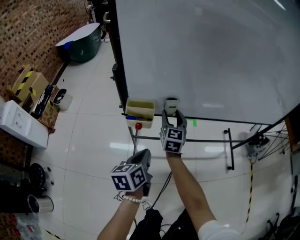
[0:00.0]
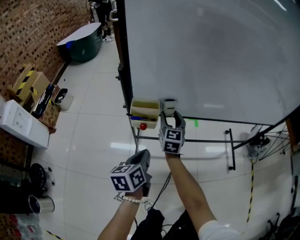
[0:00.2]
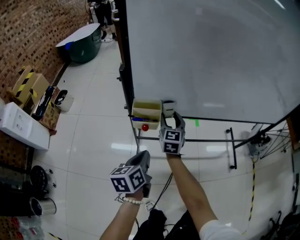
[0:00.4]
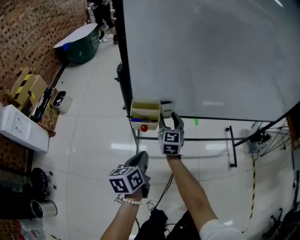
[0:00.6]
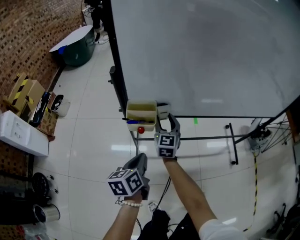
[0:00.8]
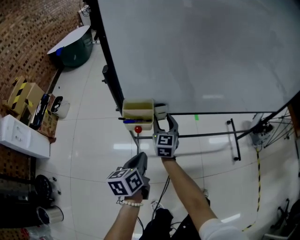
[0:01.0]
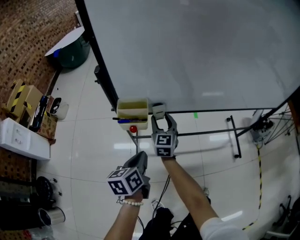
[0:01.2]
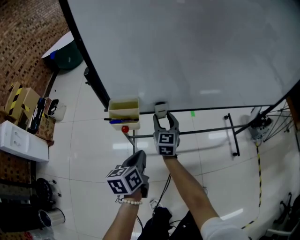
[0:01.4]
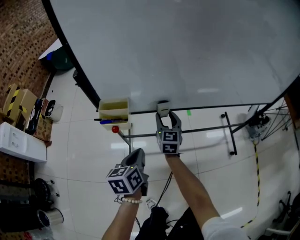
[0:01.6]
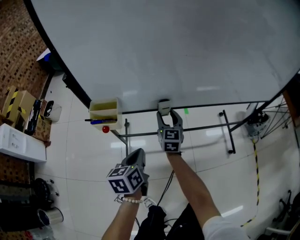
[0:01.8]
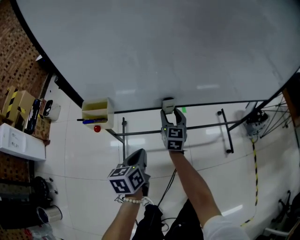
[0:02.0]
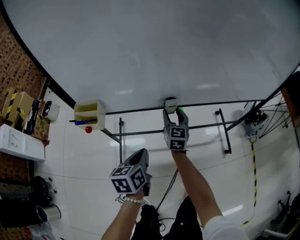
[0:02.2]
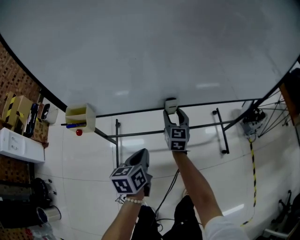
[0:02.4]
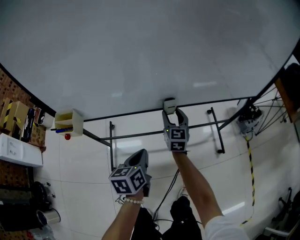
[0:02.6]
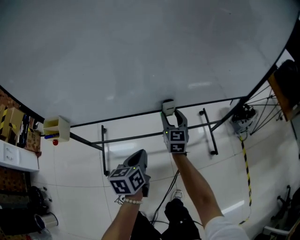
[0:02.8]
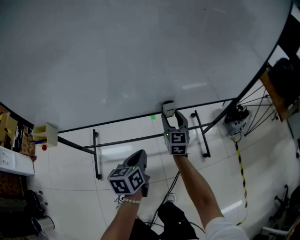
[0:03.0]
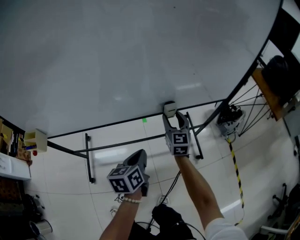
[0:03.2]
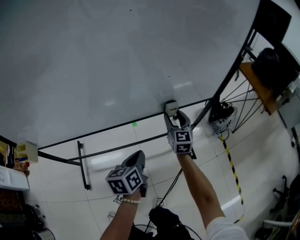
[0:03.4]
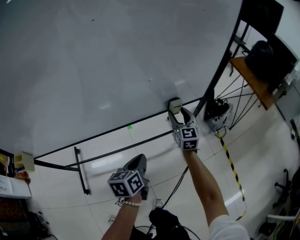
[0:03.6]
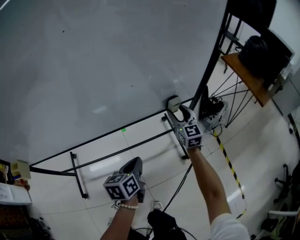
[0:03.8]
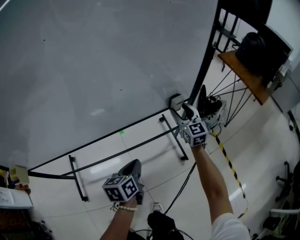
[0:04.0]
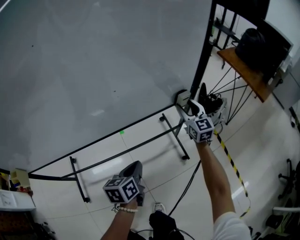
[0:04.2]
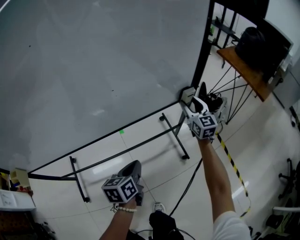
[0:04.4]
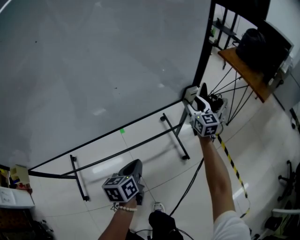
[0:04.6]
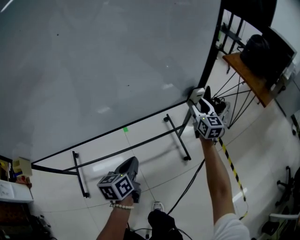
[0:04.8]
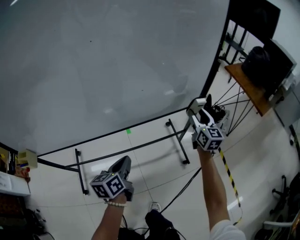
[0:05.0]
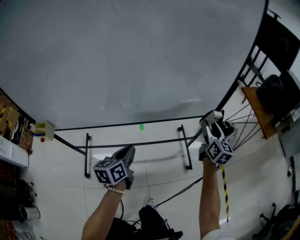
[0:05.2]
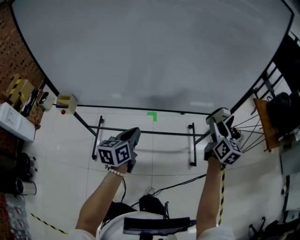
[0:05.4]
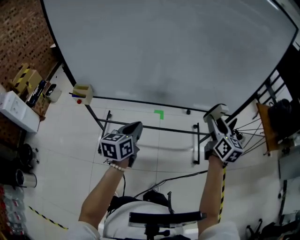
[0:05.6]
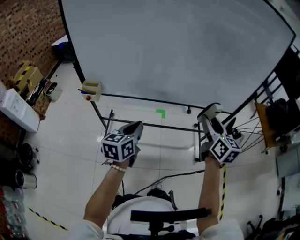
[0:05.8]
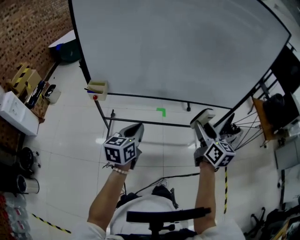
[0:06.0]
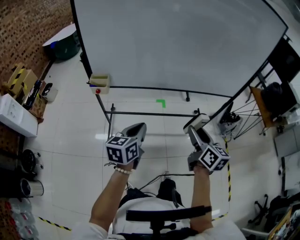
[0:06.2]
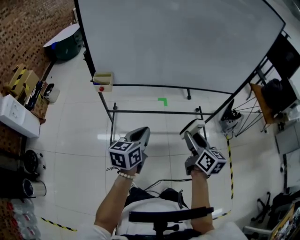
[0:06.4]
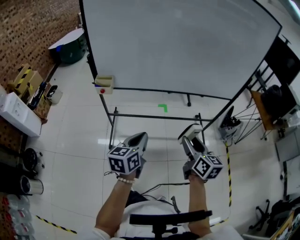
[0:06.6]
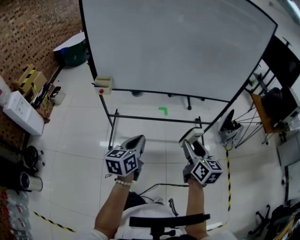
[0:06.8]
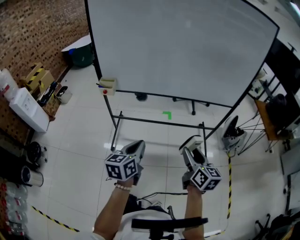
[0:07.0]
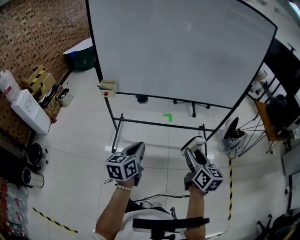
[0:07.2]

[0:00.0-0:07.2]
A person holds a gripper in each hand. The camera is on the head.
0.0 to 1.4 s: The right gripper heads downward, covering about 5 cm.
1.4 to 2.8 s: The two grippers go some 40 cm to the right.
2.8 to 4.4 s: The right gripper is displaced to the right by some 50 cm; the left gripper moves to the right and forward, approximately 35 cm.
4.4 to 5.8 s: The two grippers travel together, to the left and backward, some 50 cm. The grippers both shift upward by approximately 30 cm. The left gripper turns by about 30 degrees. The right gripper changes its angle by about 20 degrees.
5.8 to 7.2 s: Both grippers move backward, approximately 20 cm.

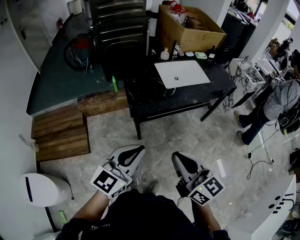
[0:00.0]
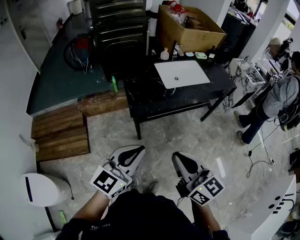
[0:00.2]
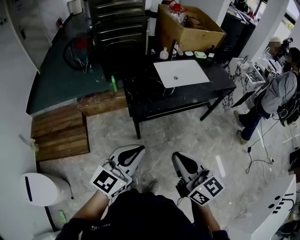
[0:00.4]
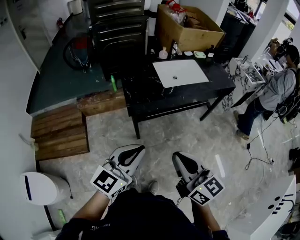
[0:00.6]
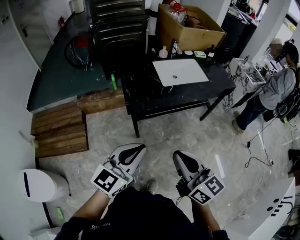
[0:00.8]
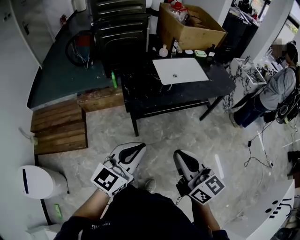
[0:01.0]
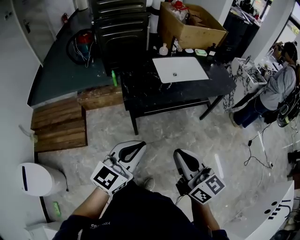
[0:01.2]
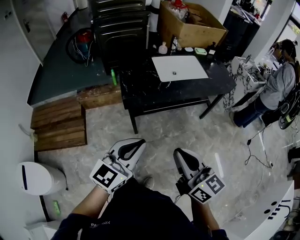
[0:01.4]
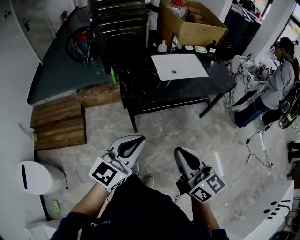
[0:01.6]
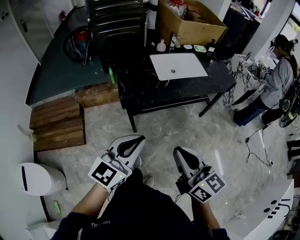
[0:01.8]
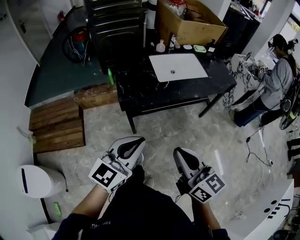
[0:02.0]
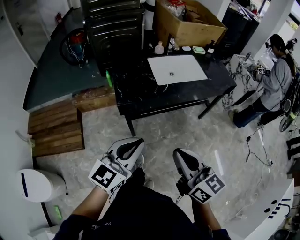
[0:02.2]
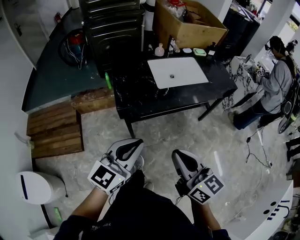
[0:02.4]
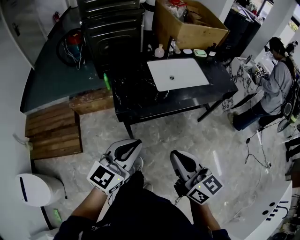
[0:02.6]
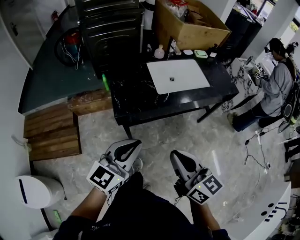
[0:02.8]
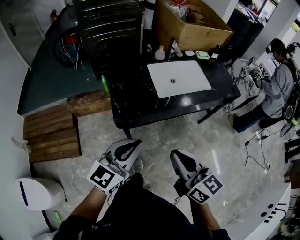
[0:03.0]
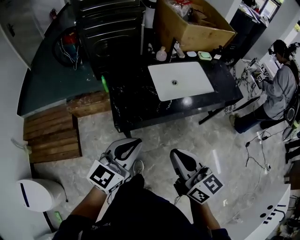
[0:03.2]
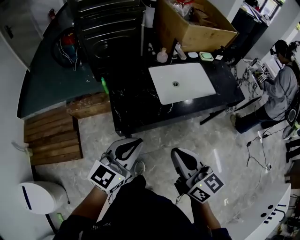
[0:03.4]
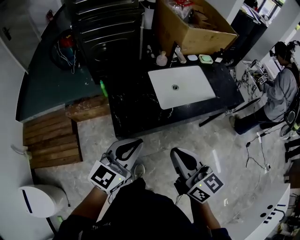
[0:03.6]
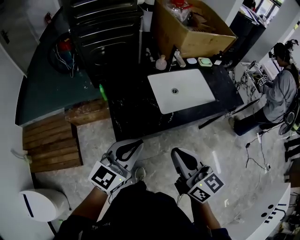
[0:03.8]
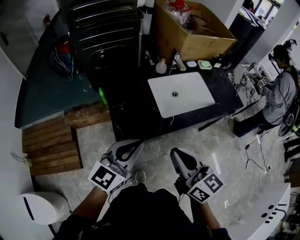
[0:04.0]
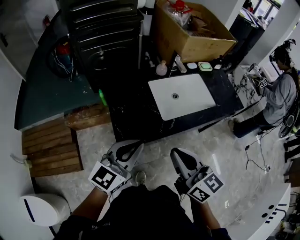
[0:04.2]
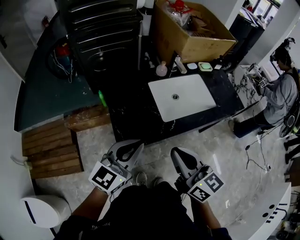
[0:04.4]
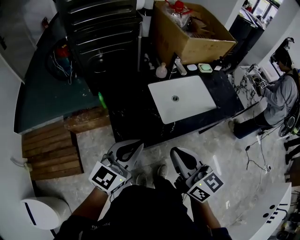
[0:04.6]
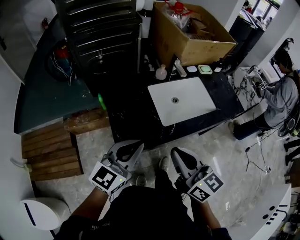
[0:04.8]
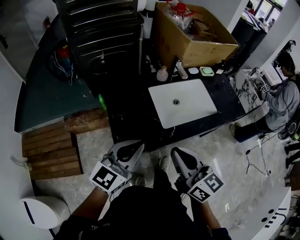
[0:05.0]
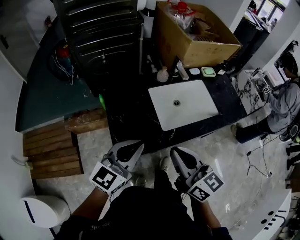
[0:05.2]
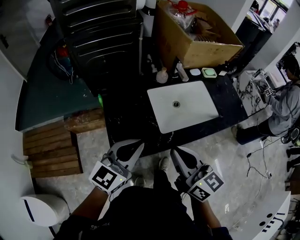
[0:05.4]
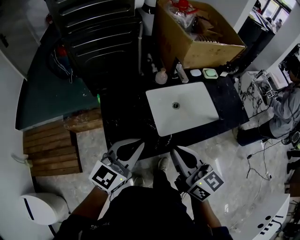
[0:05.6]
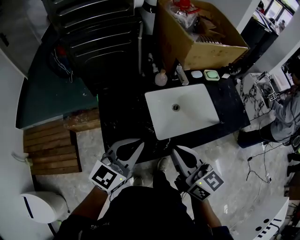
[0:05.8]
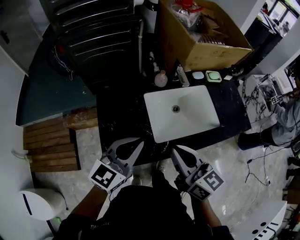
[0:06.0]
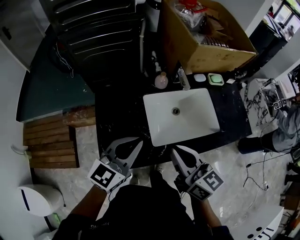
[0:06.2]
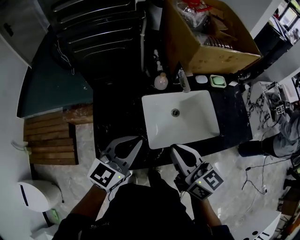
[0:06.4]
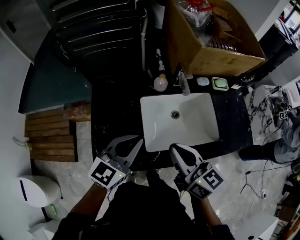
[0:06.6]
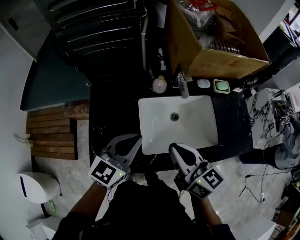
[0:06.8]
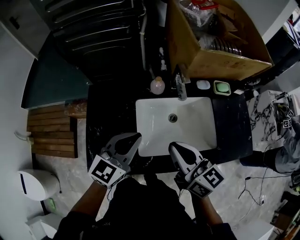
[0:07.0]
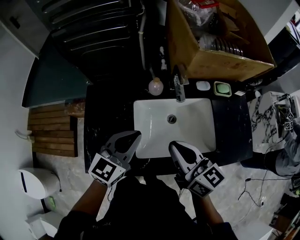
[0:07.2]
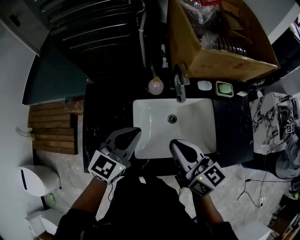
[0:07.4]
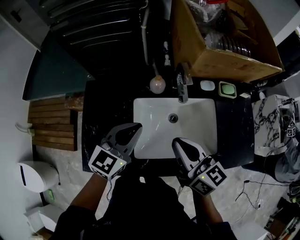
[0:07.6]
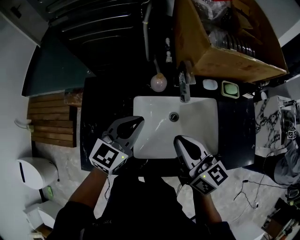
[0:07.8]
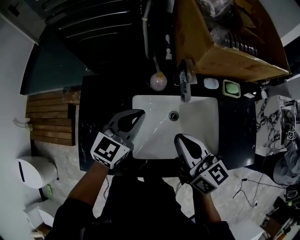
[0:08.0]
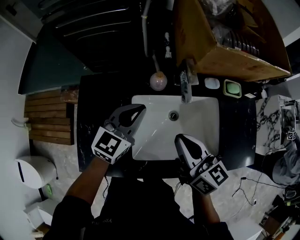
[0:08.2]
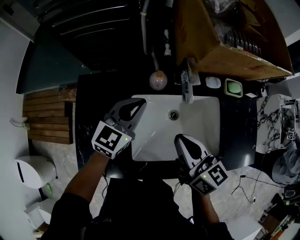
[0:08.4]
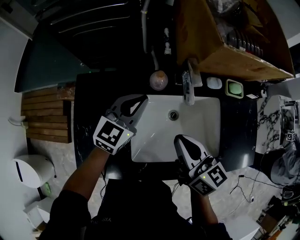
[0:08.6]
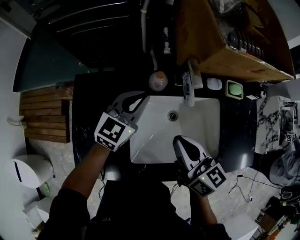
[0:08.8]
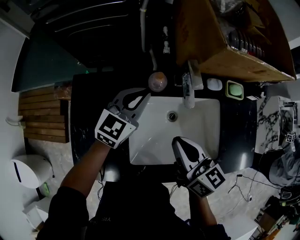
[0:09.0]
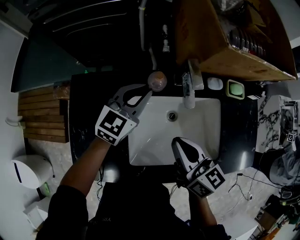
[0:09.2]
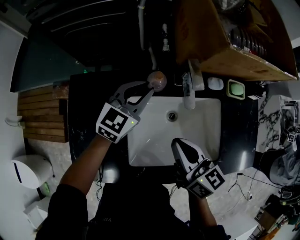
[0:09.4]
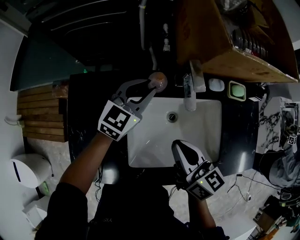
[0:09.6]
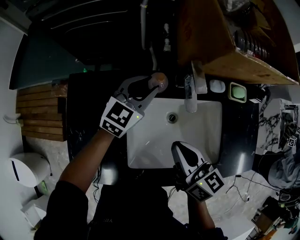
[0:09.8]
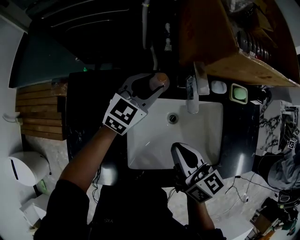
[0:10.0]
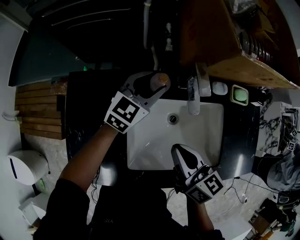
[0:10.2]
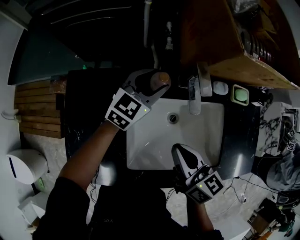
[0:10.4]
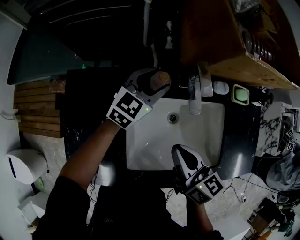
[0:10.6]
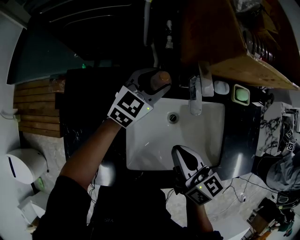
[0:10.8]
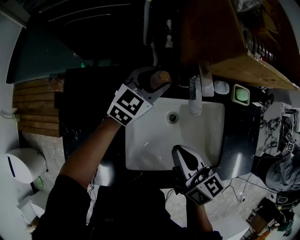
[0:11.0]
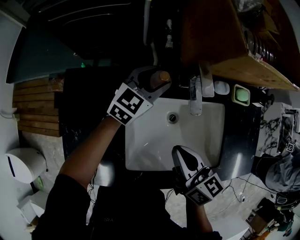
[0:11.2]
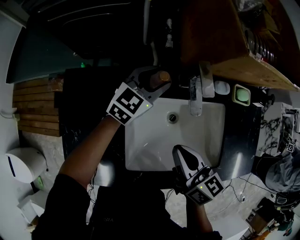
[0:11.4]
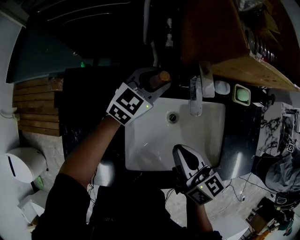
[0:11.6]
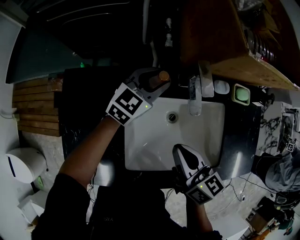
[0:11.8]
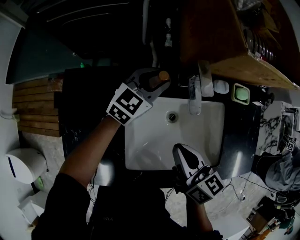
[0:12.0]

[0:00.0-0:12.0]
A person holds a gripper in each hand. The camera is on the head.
0.0 to 1.6 s: Both grippers travel together to the right, approximately 5 cm.
1.6 to 3.0 s: The two grippers go roughly 15 cm forward.
3.0 to 4.4 s: Both grippers move forward, approximately 15 cm.
4.4 to 6.0 s: The left gripper goes approximately 15 cm forward and to the right. The right gripper moves forward, roughly 15 cm.
6.0 to 7.6 s: The grippers both shift forward and to the right by some 20 cm.
7.6 to 9.0 s: The right gripper heads downward, covering some 5 cm, while the left gripper moves forward and downward, some 15 cm.
9.0 to 10.4 s: The left gripper moves forward, about 5 cm, and opens.
10.4 to 12.0 s: There are only small adjustments of the grippers.

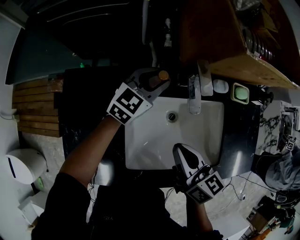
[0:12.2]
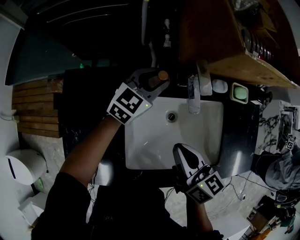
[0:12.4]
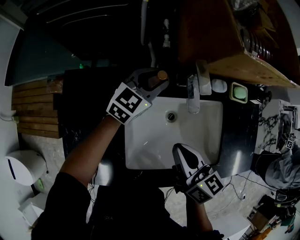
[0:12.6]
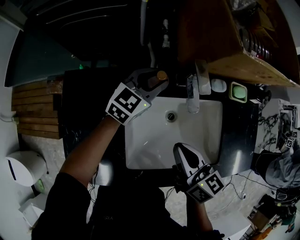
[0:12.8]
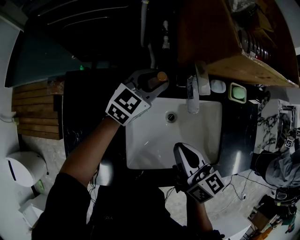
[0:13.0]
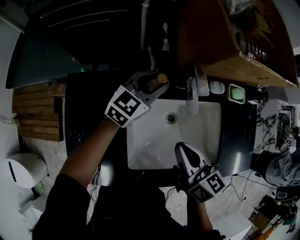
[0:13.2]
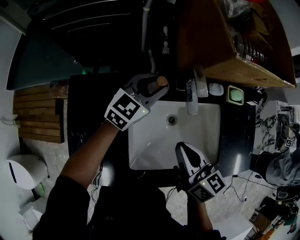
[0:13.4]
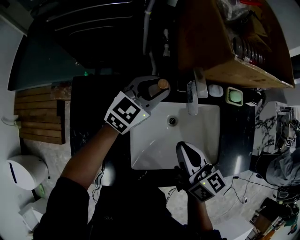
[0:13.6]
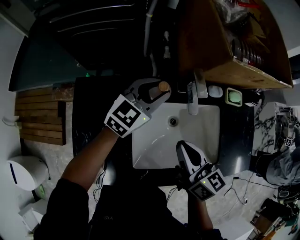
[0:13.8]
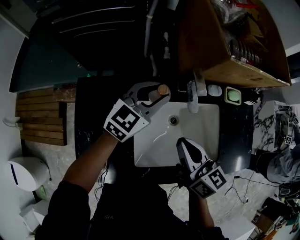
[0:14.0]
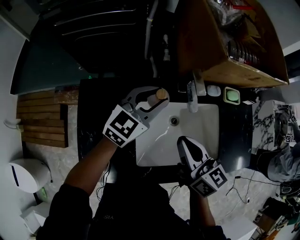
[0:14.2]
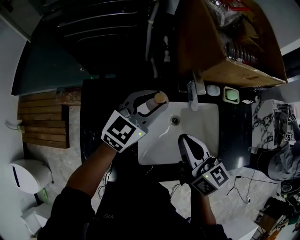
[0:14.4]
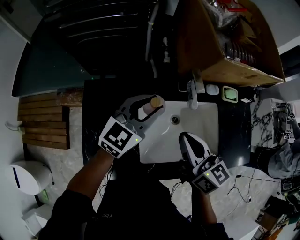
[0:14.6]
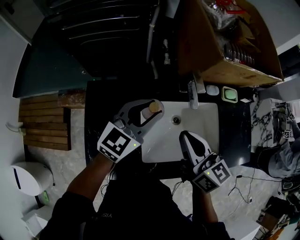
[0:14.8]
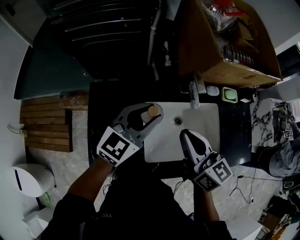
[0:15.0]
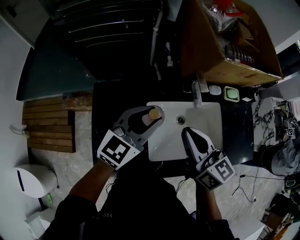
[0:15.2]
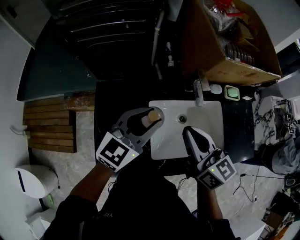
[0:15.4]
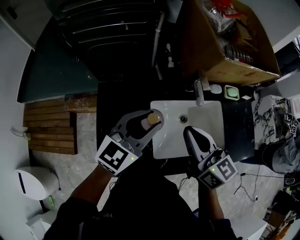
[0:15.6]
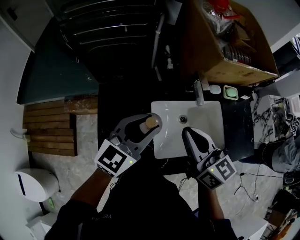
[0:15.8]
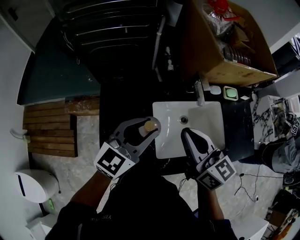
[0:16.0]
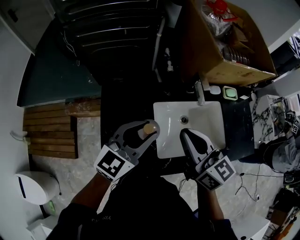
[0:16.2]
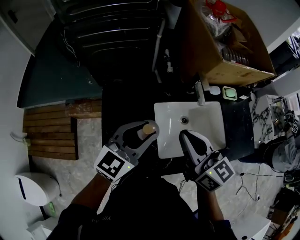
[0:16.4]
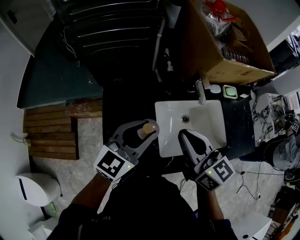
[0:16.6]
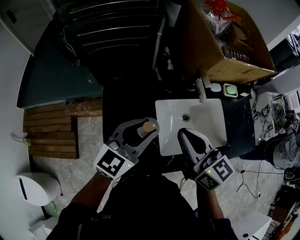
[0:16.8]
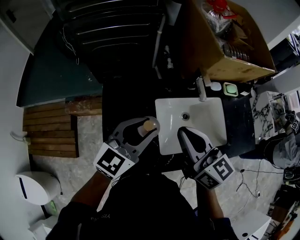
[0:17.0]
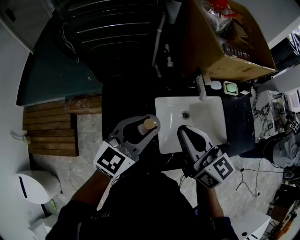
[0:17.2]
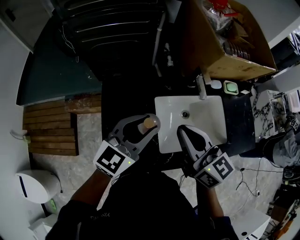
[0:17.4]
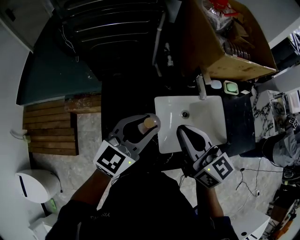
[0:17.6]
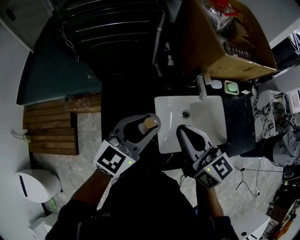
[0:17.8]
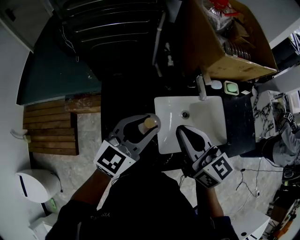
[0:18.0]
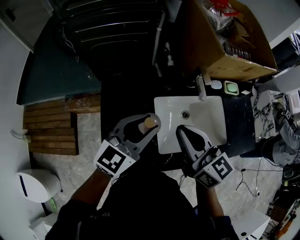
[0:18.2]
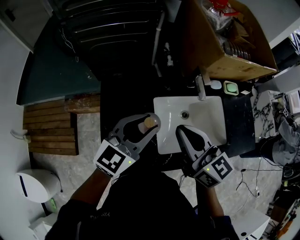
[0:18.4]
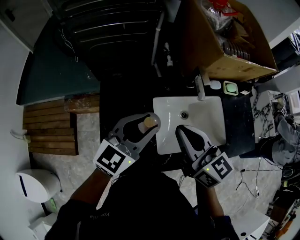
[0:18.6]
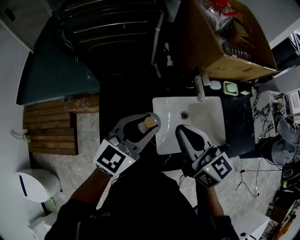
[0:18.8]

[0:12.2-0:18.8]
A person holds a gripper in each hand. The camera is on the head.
12.2 to 13.8 s: The right gripper moves upward, roughly 5 cm. The left gripper is displaced upward by some 10 cm.
13.8 to 15.4 s: The left gripper goes roughly 20 cm backward, upward and to the left. The right gripper travels upward and to the left by roughly 10 cm.
15.4 to 17.2 s: The right gripper travels to the left by some 5 cm; the left gripper shifts approximately 5 cm backward.
17.2 to 18.8 s: The grippers make only small movements.
